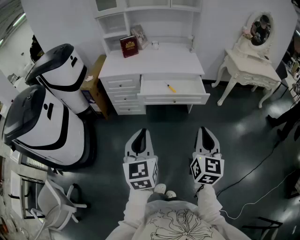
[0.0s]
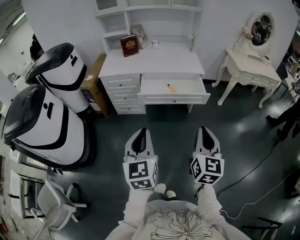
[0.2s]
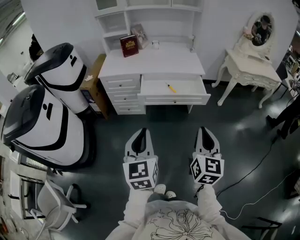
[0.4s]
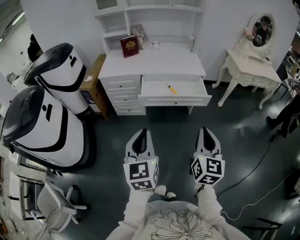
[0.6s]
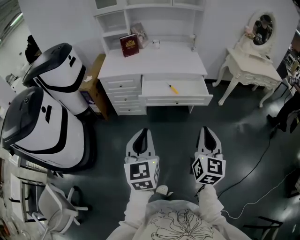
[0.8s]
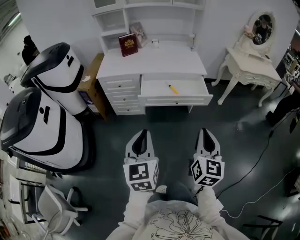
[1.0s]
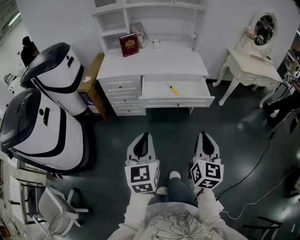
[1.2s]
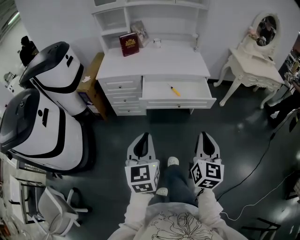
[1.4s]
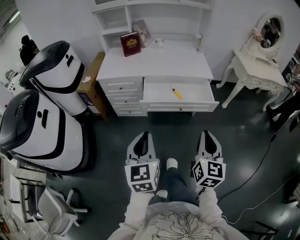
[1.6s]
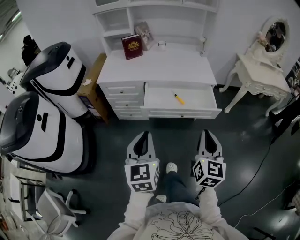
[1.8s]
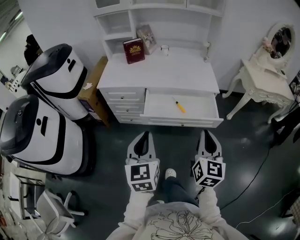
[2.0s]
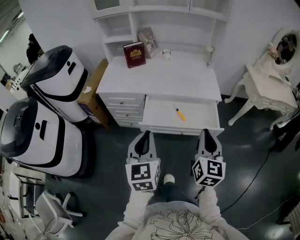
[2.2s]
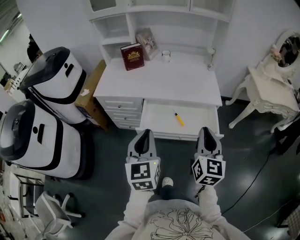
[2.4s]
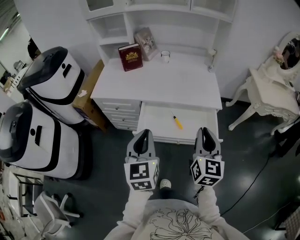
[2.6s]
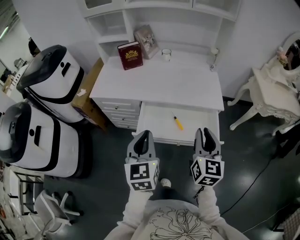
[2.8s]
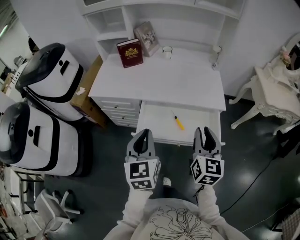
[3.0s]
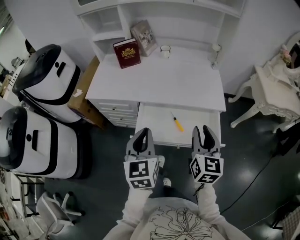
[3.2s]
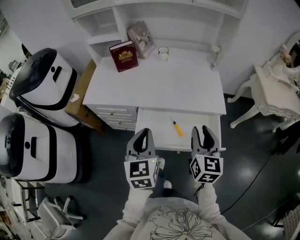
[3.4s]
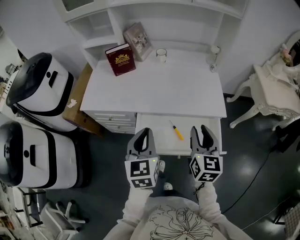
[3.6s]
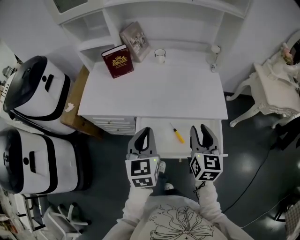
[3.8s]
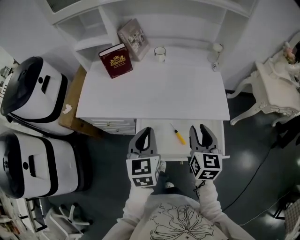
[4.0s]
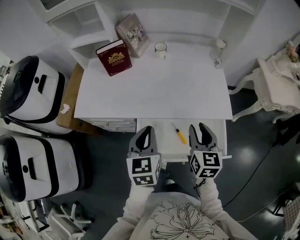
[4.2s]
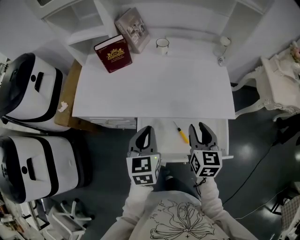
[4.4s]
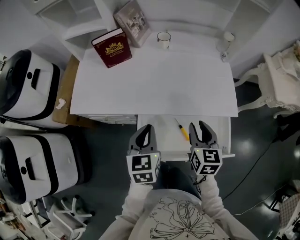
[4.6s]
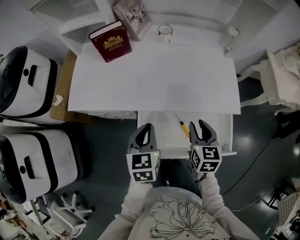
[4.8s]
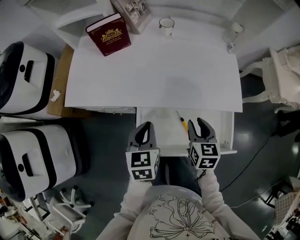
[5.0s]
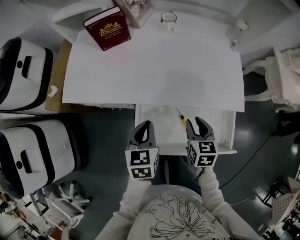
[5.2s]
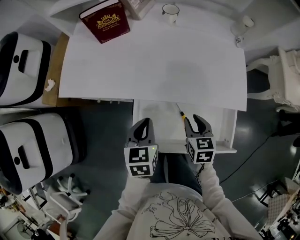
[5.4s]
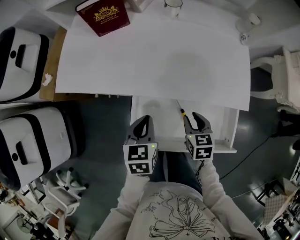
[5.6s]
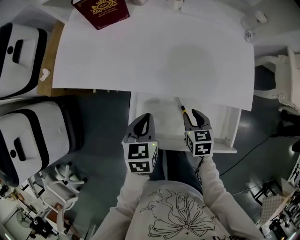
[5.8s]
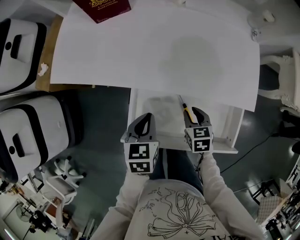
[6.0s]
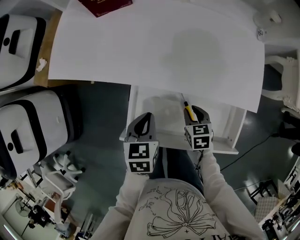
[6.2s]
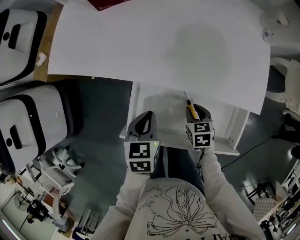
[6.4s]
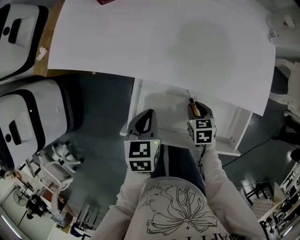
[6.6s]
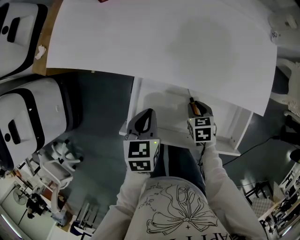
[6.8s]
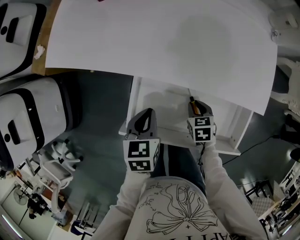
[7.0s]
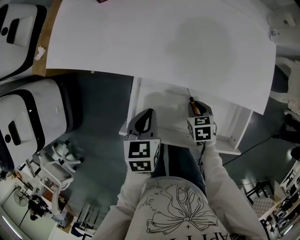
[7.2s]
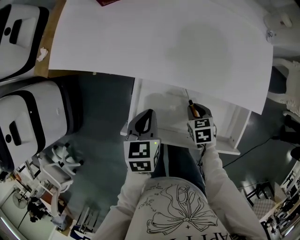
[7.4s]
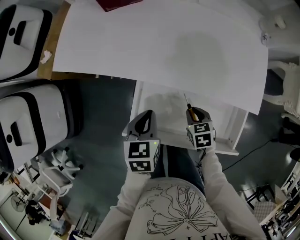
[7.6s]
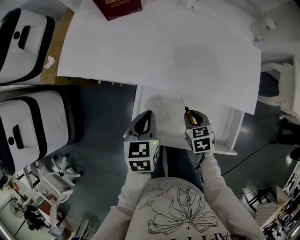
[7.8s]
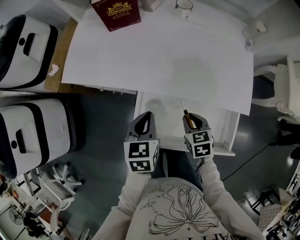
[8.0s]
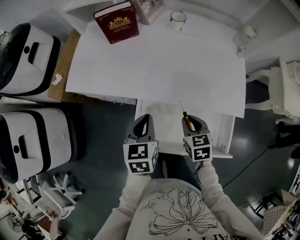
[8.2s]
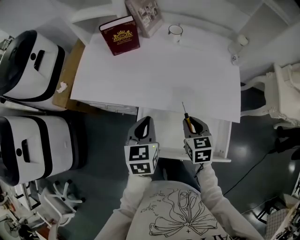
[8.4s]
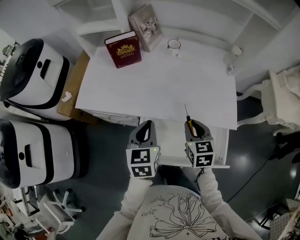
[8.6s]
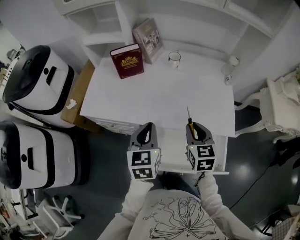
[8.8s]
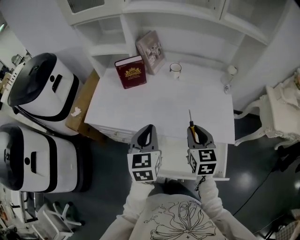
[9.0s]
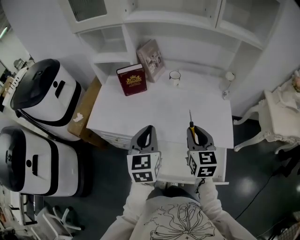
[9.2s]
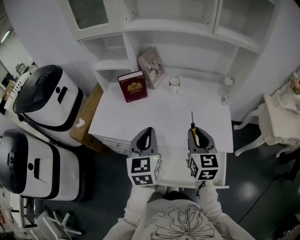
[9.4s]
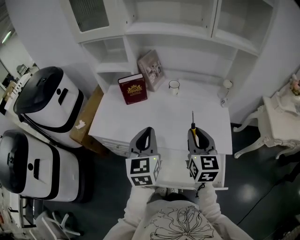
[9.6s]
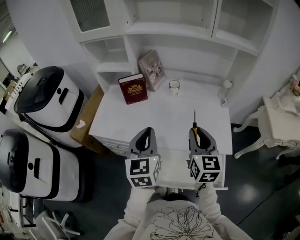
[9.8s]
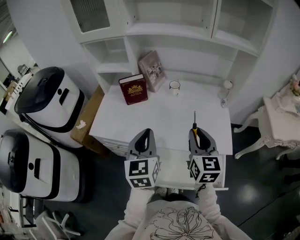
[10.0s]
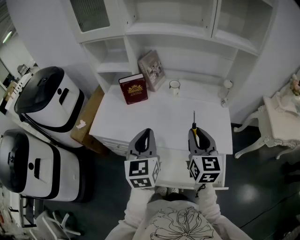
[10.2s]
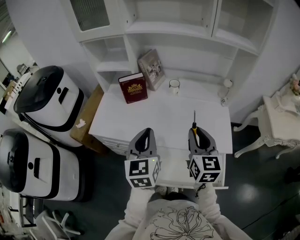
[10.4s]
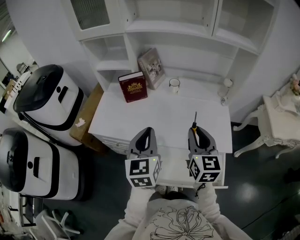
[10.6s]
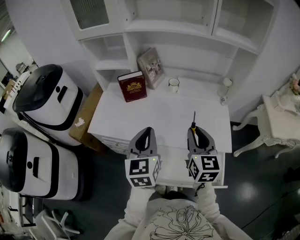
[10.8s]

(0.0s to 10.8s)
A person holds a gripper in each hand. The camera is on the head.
0.0s - 1.6s: Both grippers travel together forward, roughly 10 cm.
1.6s - 3.0s: The two grippers go approximately 30 cm forward. The right gripper opens its fingers.
3.0s - 4.6s: Both grippers move forward and downward, about 25 cm.
4.6s - 6.2s: The left gripper travels downward by roughly 15 cm, and swivels roughly 20 degrees, while the right gripper travels downward by approximately 25 cm, and changes its angle by approximately 40 degrees.
6.2s - 7.8s: The grippers make only small movements.
7.8s - 9.2s: Both grippers move upward, about 30 cm. The left gripper changes its angle by some 30 degrees. The right gripper tips its fingers upward by approximately 40 degrees.
9.2s - 10.8s: The right gripper is displaced upward by roughly 5 cm.

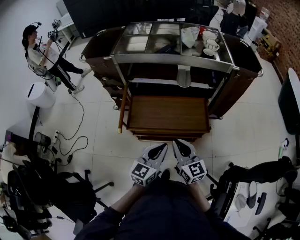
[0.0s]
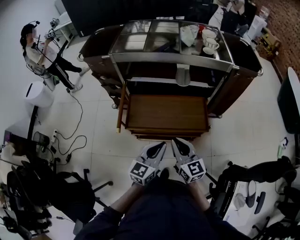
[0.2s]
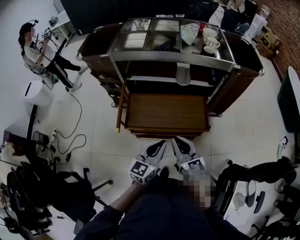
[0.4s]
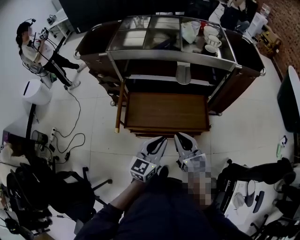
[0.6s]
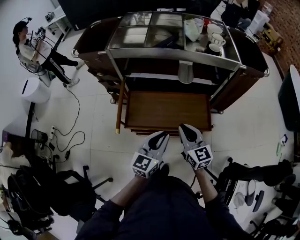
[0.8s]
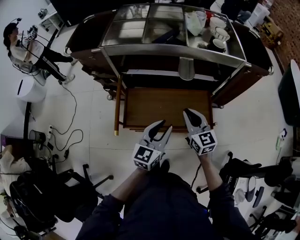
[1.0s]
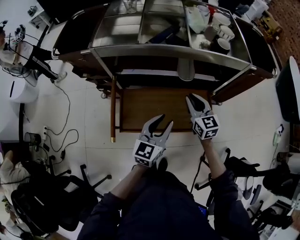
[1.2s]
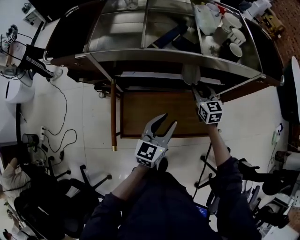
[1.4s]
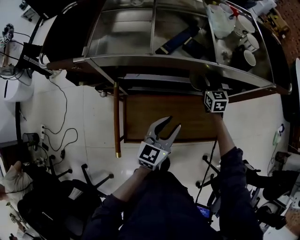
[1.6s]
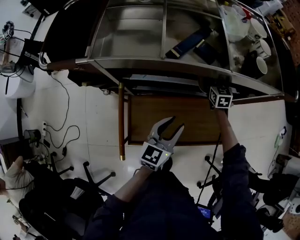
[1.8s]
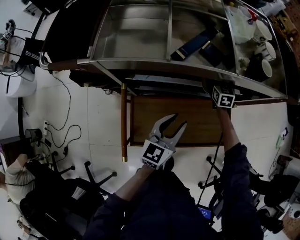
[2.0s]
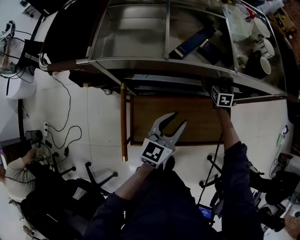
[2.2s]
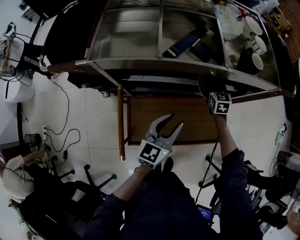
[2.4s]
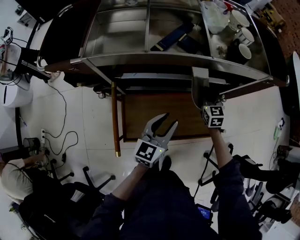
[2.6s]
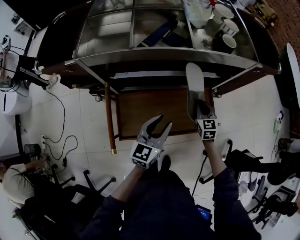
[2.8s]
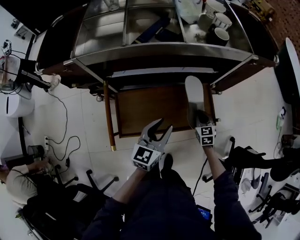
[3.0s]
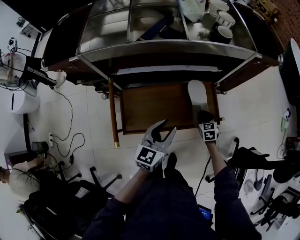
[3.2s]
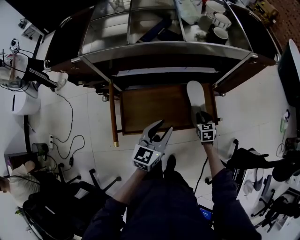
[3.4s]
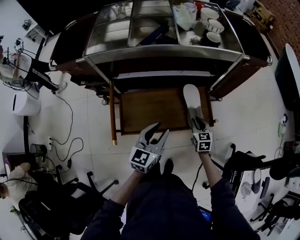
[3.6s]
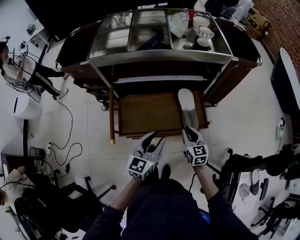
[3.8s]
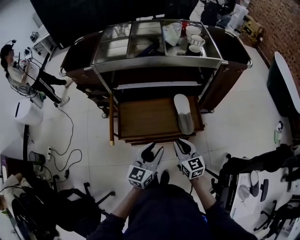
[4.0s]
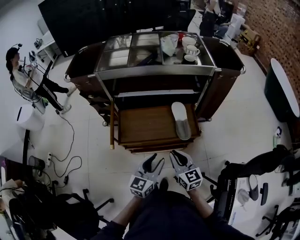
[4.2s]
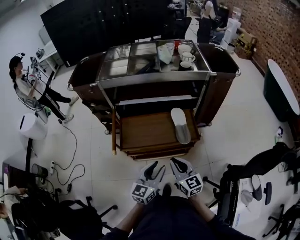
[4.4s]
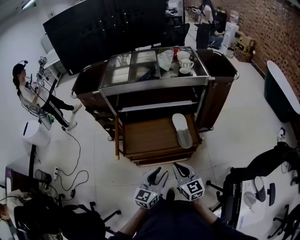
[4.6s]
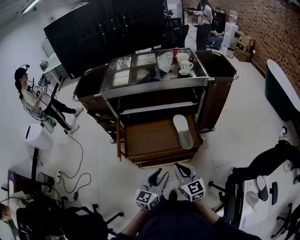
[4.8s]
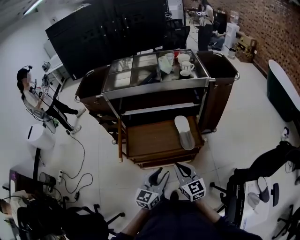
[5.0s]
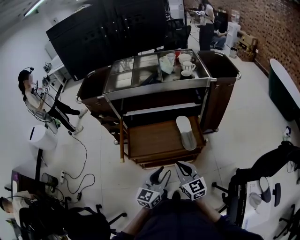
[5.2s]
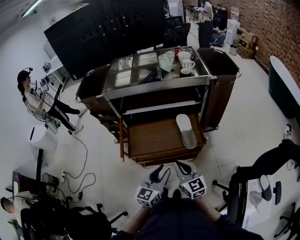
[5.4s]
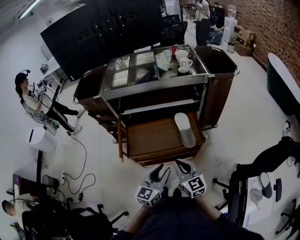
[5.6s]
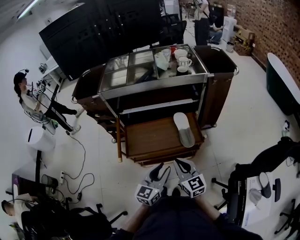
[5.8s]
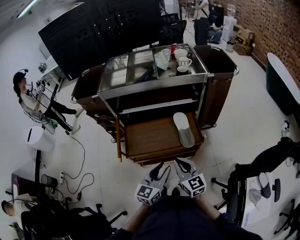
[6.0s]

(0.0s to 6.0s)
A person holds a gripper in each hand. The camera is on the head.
0.0s - 1.6s: The left gripper shifts approximately 30 cm forward, and opens. Meanwhile the right gripper shifts about 50 cm forward, swivels approximately 30 degrees, and opens up.
1.6s - 3.0s: The left gripper travels backward by about 5 cm, while the right gripper travels backward, to the right and downward by some 25 cm, and closes.
3.0s - 4.4s: The right gripper heads backward and upward, covering approximately 35 cm, and rotates some 30 degrees, while the left gripper is displaced backward by roughly 25 cm.
4.4s - 6.0s: The grippers make only small movements.

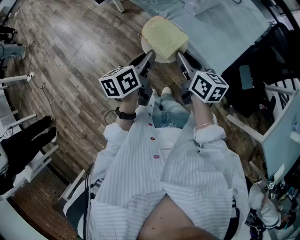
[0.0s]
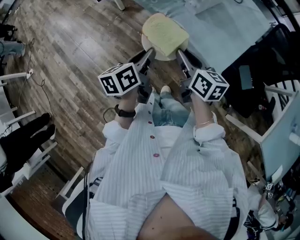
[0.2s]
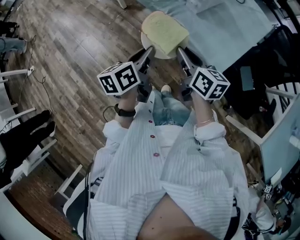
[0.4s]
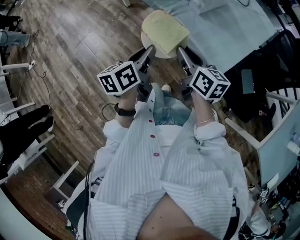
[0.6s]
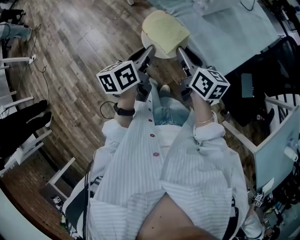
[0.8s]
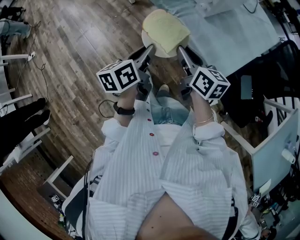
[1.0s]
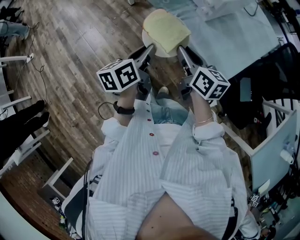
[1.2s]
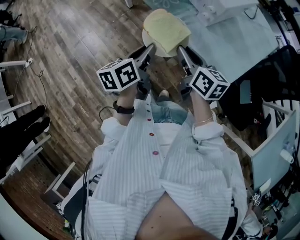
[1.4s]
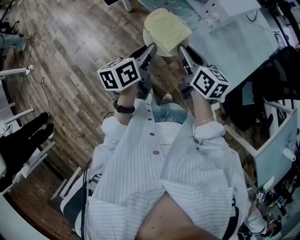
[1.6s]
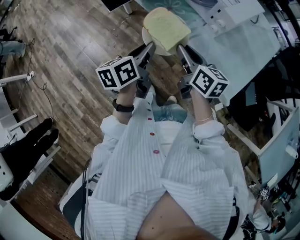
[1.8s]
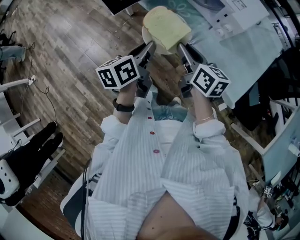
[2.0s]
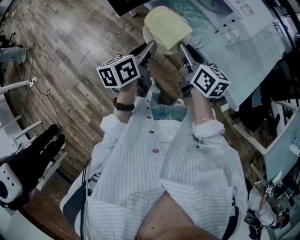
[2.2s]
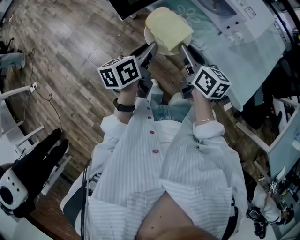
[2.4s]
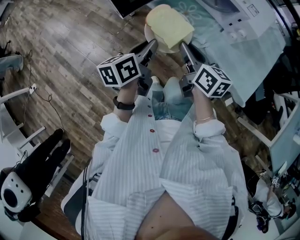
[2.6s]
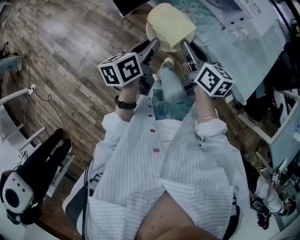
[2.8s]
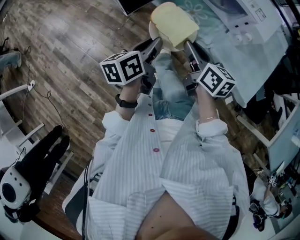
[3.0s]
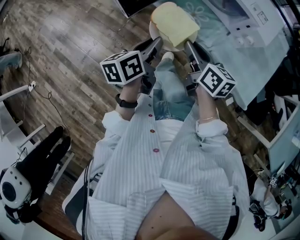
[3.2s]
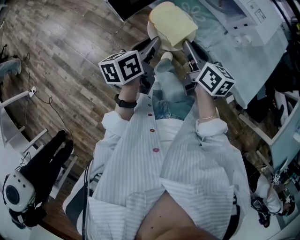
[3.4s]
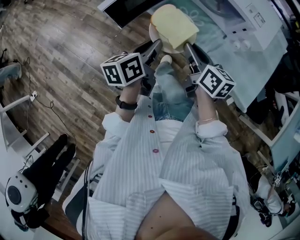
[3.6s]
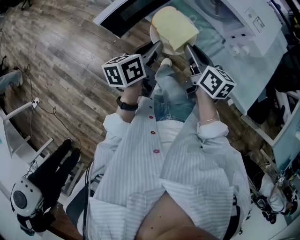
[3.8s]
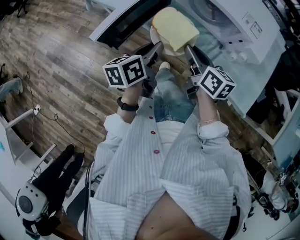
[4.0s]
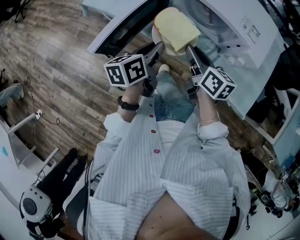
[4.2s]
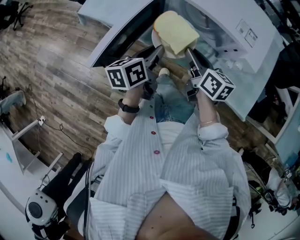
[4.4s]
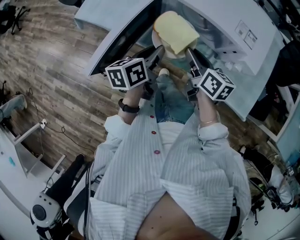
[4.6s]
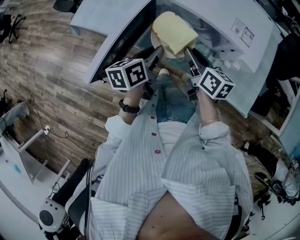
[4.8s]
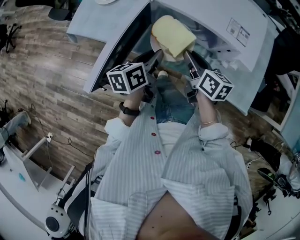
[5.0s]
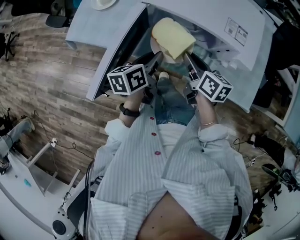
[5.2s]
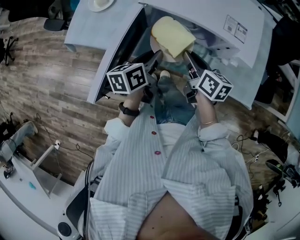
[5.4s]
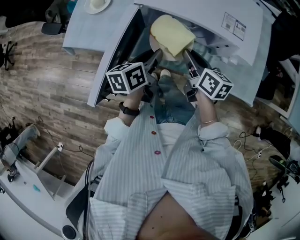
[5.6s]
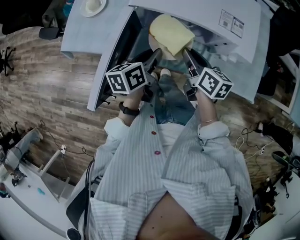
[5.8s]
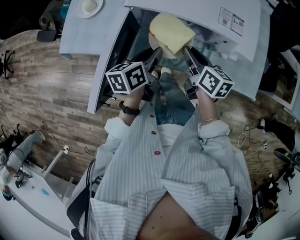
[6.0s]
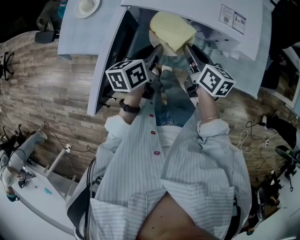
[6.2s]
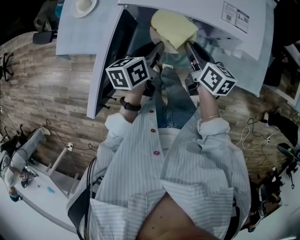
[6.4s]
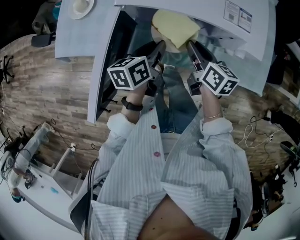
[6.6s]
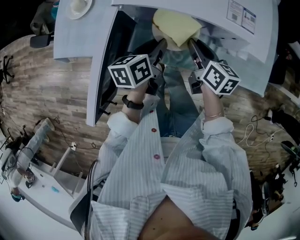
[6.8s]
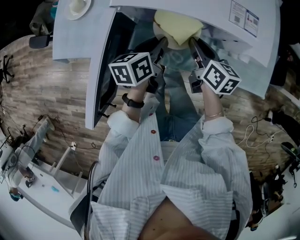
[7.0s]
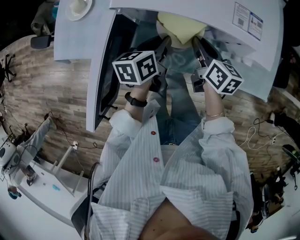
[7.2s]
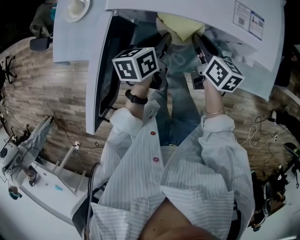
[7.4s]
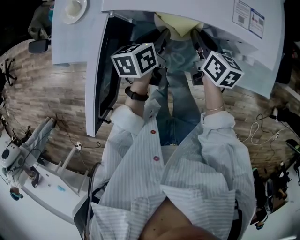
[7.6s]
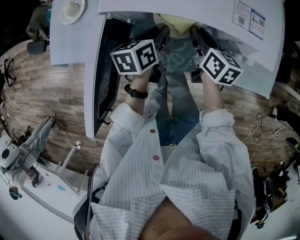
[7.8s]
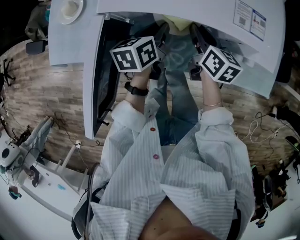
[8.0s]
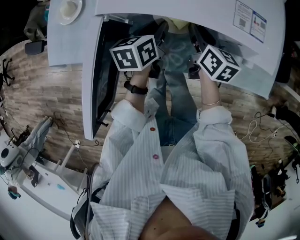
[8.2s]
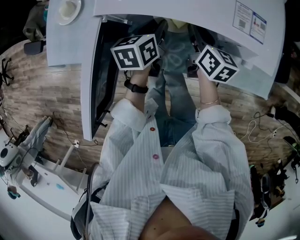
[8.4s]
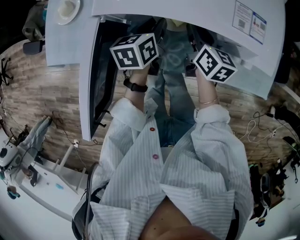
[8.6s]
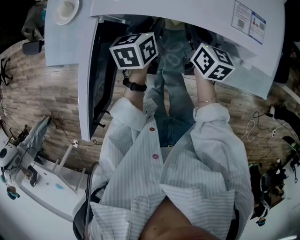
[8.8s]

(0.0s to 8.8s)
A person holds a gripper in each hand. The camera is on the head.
0.0s - 1.4s: The grippers both shift forward by about 5 cm.
1.4s - 3.0s: The right gripper travels to the left and forward by about 25 cm. Meanwhile the left gripper shifts about 25 cm forward and to the left.
3.0s - 4.4s: The grippers both shift forward by roughly 20 cm.
4.4s - 5.8s: The right gripper changes place by approximately 5 cm. Meanwhile the left gripper shifts approximately 5 cm forward.
5.8s - 7.4s: The left gripper shifts roughly 10 cm forward and downward. The right gripper moves downward and forward, roughly 10 cm.
7.4s - 8.8s: The left gripper is displaced forward by about 5 cm.
